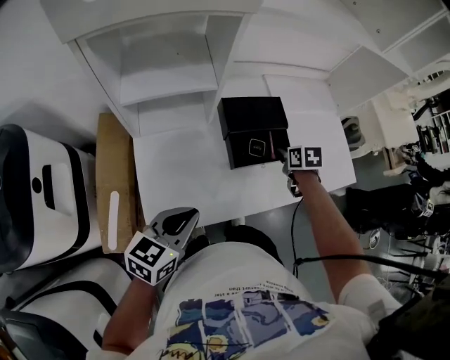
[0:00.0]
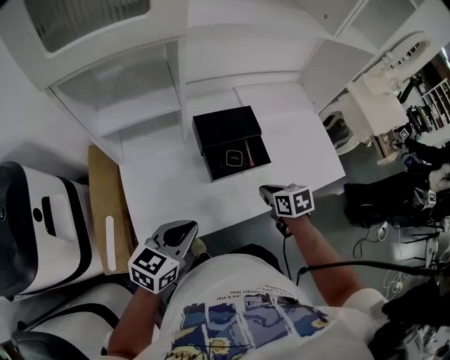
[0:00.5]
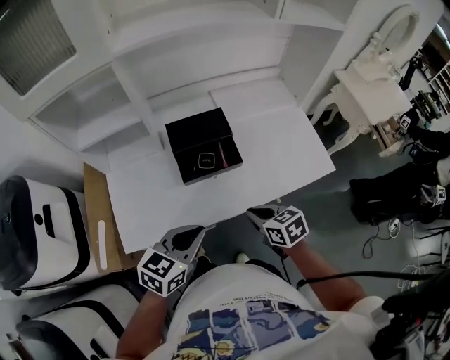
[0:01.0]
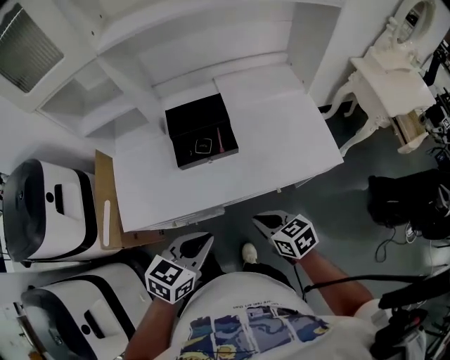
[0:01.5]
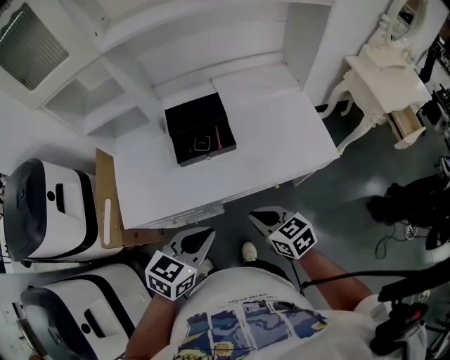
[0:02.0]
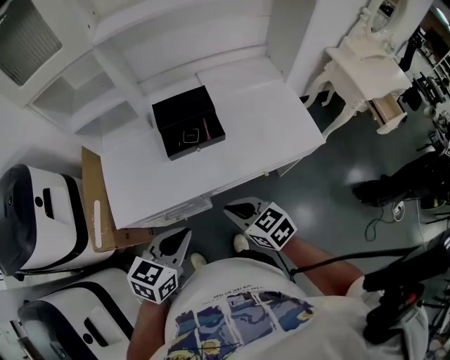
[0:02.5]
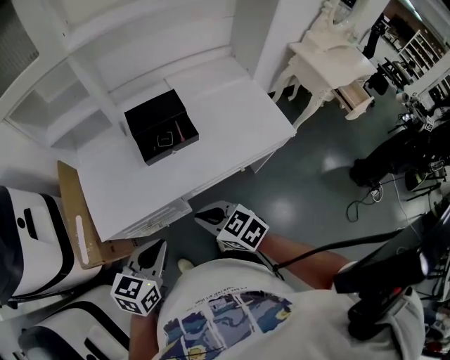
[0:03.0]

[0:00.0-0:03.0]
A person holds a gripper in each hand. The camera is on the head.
0:00.0 to 0:01.5: The right gripper travels backward by about 25 cm, and changes its angle by some 40 degrees, while the left gripper travels to the right by some 25 cm.
0:01.5 to 0:03.0: The left gripper goes roughly 10 cm to the left. Meanwhile the right gripper goes some 15 cm to the left and upward.

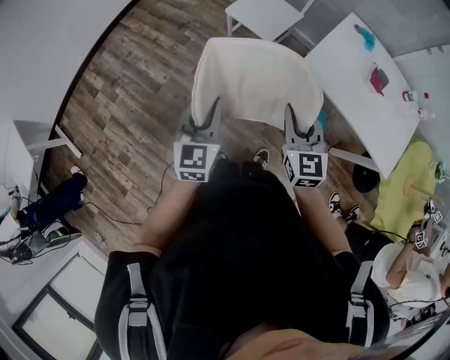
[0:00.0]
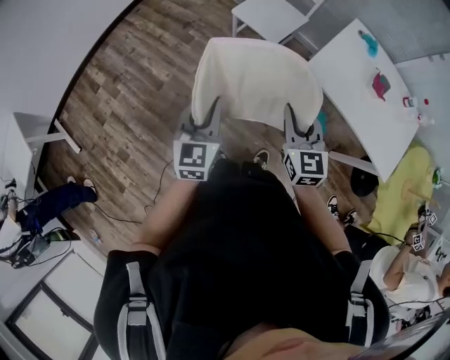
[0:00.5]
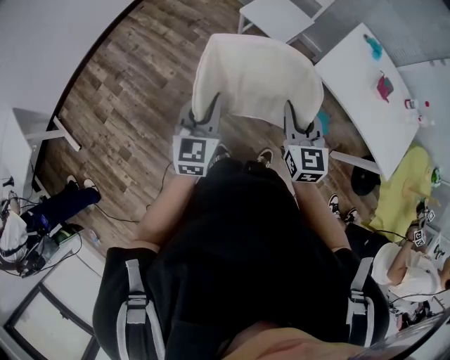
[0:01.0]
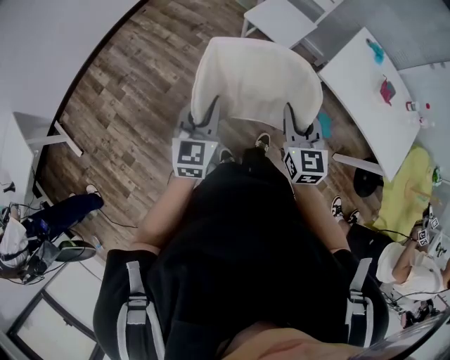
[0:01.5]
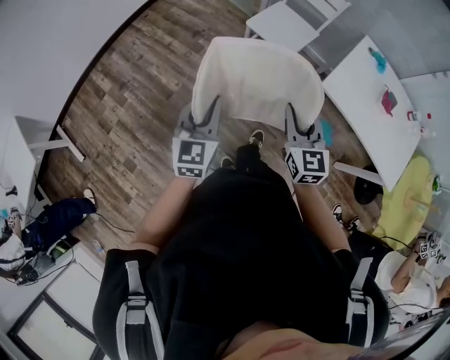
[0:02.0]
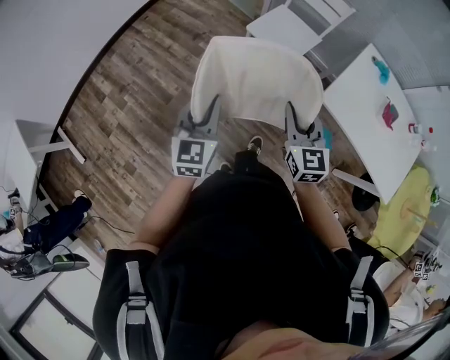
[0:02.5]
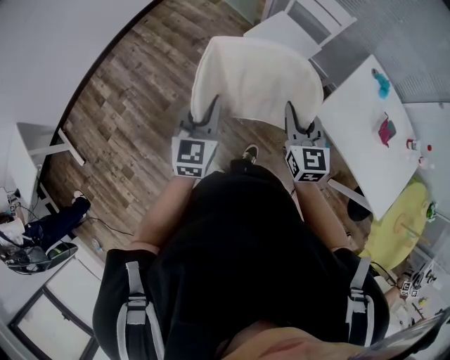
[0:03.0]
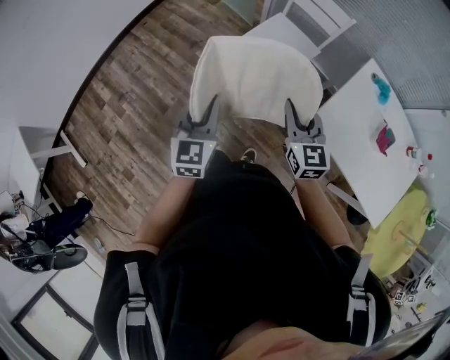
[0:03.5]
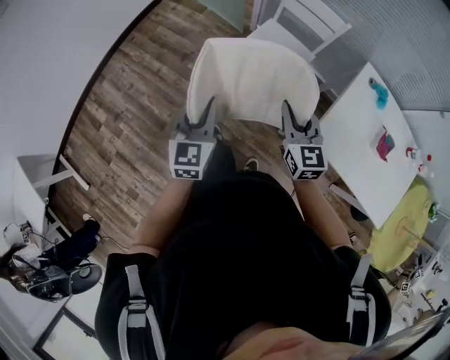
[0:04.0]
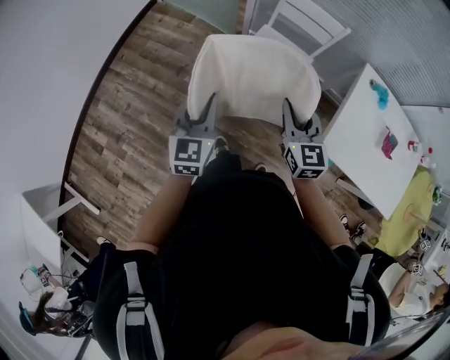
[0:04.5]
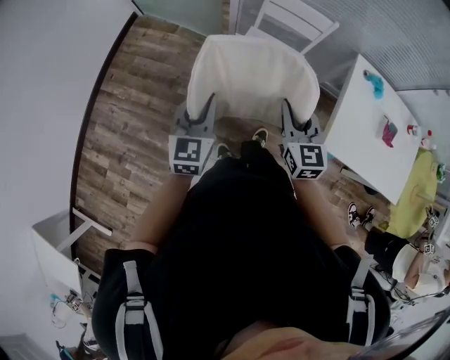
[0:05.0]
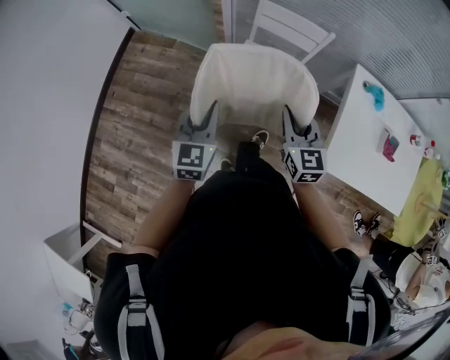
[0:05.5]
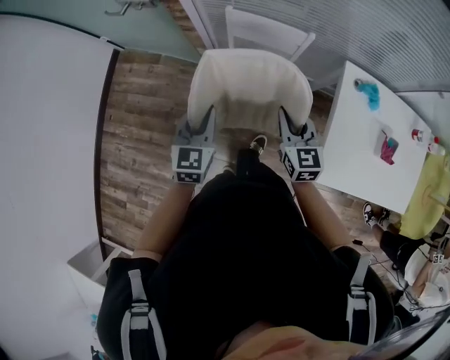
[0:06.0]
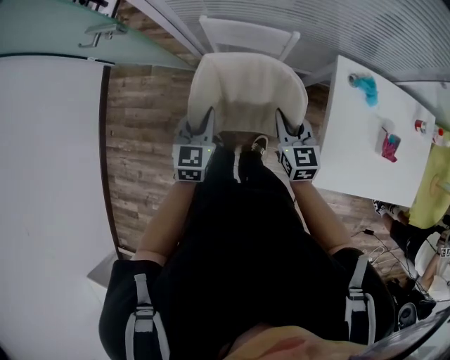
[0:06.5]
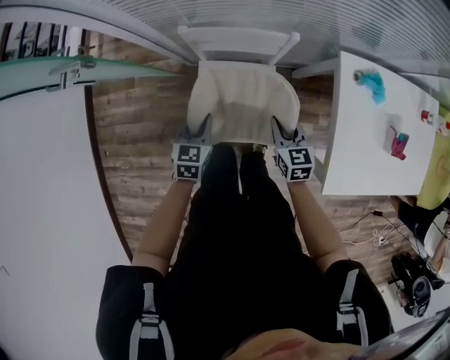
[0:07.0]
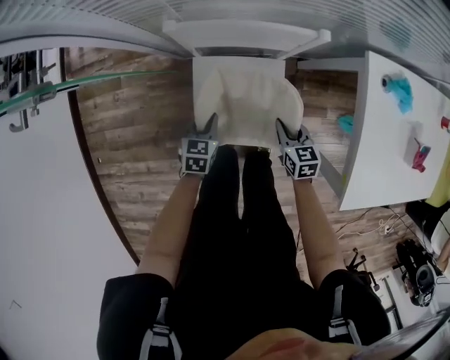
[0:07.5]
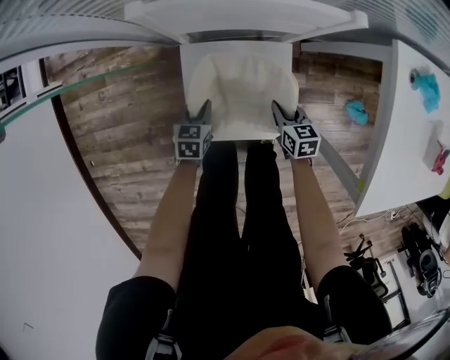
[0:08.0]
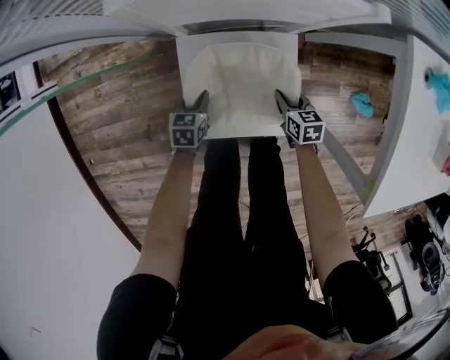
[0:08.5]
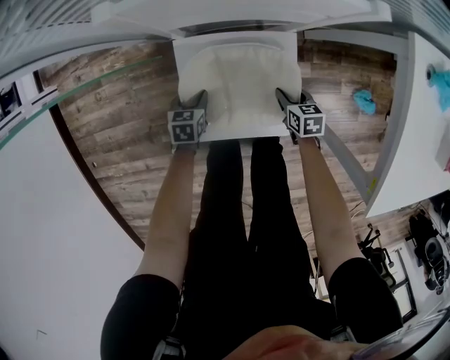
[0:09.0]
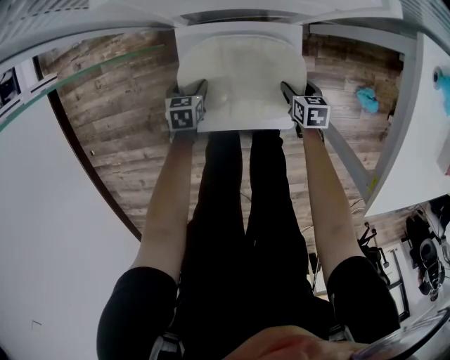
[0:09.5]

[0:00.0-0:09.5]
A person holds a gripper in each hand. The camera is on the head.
0:00.0 to 0:02.0: Both grippers move to the left, approximately 15 cm.
0:02.0 to 0:04.0: Both grippers travel together forward, roughly 30 cm.
0:04.0 to 0:05.5: The two grippers go some 20 cm forward.
0:05.5 to 0:07.5: The grippers both shift downward and forward by some 50 cm. The left gripper changes its angle by approximately 40 degrees. The right gripper rotates about 40 degrees.
0:07.5 to 0:09.5: Both grippers travel together downward, about 25 cm. The right gripper changes its angle by roughly 20 degrees, and opens. The left gripper opens up.

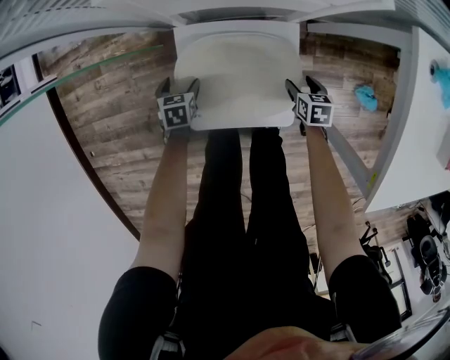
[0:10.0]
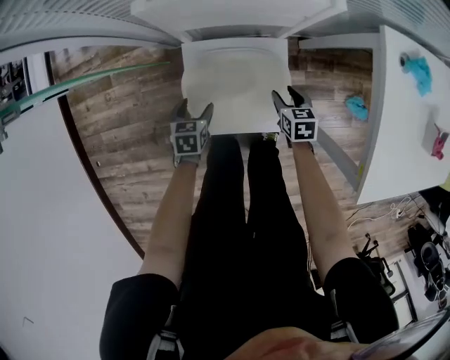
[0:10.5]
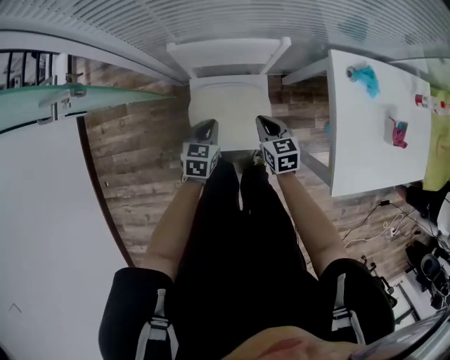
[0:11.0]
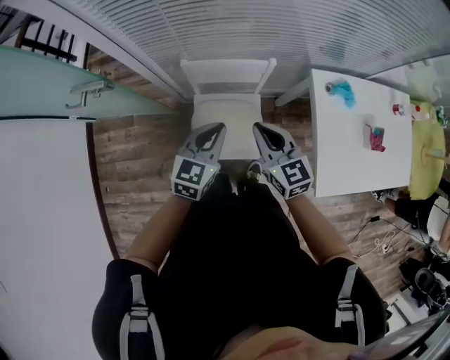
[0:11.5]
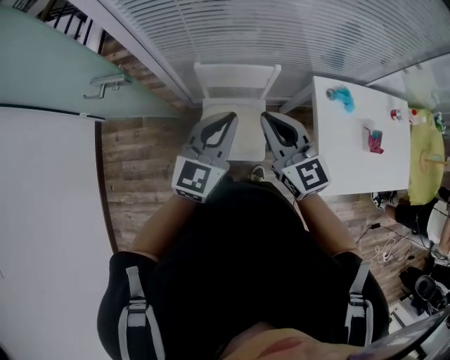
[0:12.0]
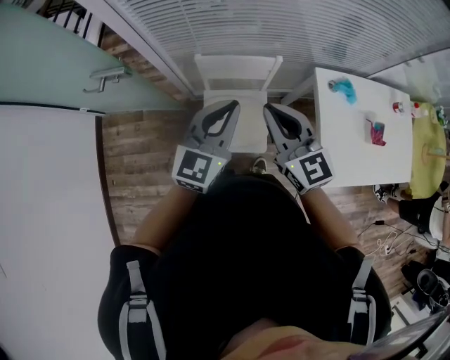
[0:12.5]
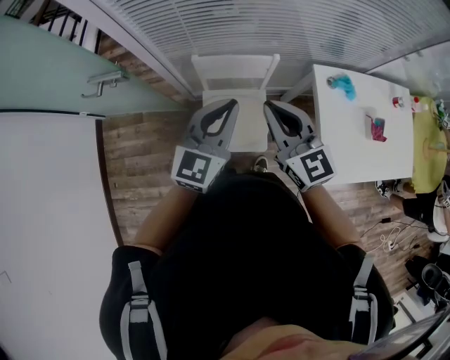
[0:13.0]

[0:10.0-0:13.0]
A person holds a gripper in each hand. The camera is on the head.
0:10.0 to 0:11.5: Both grippers move upward, roughly 60 cm. The right gripper angles its fingers upward, by approximately 40 degrees, and closes. Meanwhile the left gripper tilts its fingers approximately 40 degrees upward, and closes.
0:11.5 to 0:13.0: The two grippers go roughly 15 cm upward.

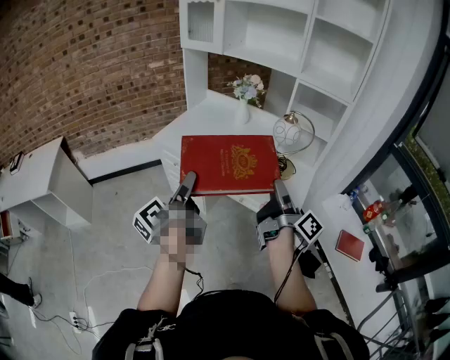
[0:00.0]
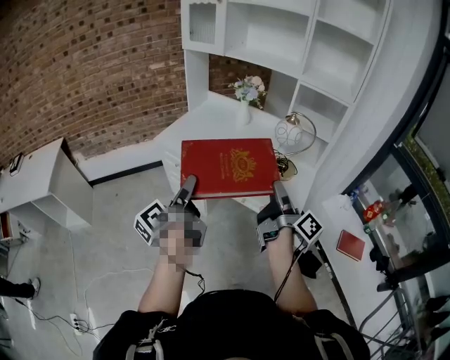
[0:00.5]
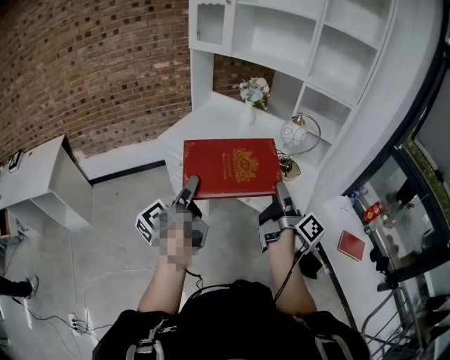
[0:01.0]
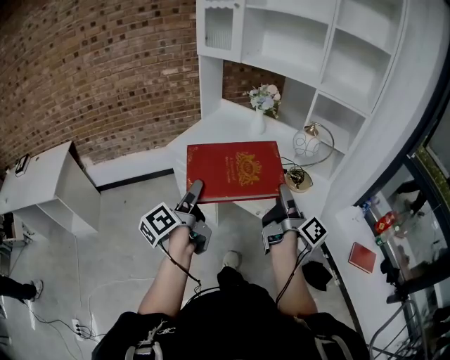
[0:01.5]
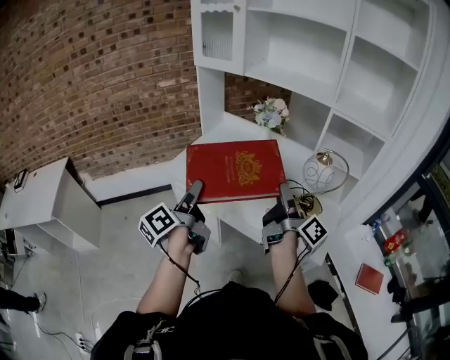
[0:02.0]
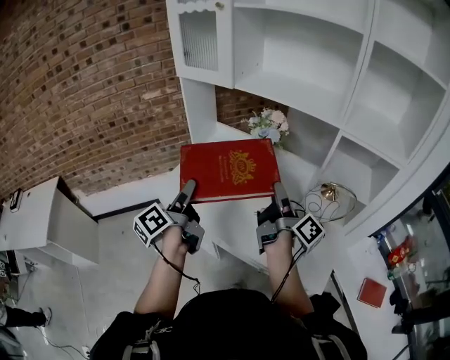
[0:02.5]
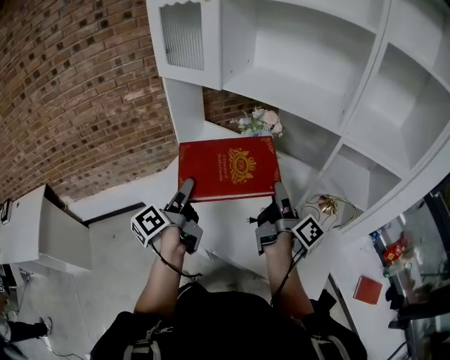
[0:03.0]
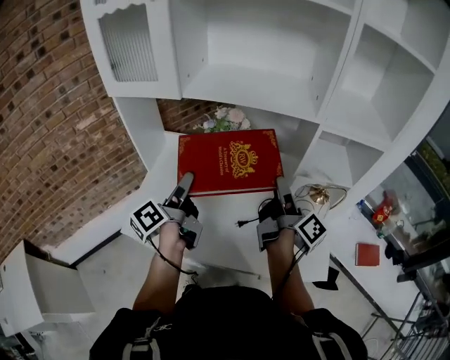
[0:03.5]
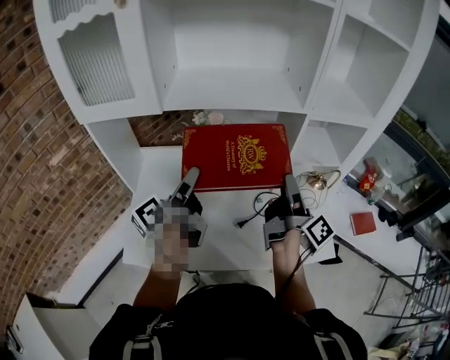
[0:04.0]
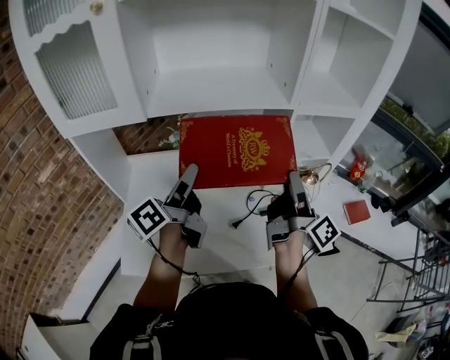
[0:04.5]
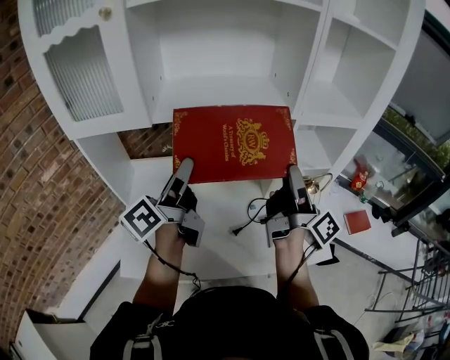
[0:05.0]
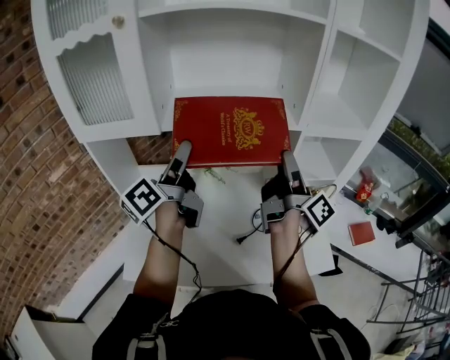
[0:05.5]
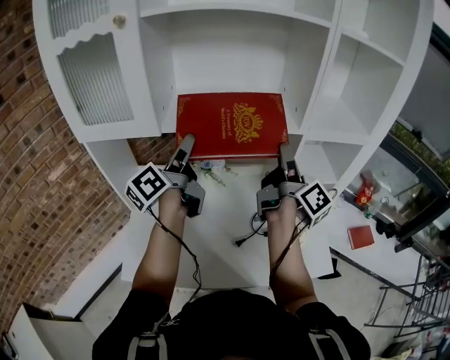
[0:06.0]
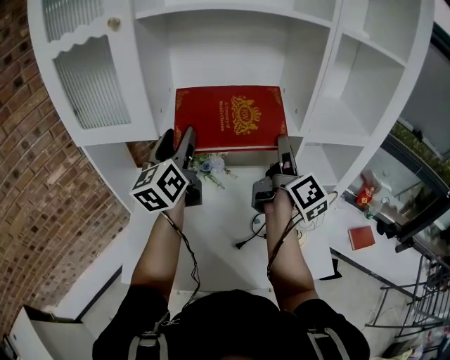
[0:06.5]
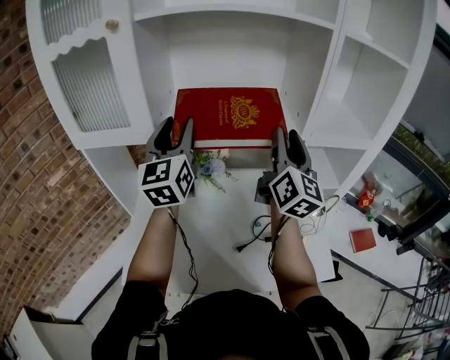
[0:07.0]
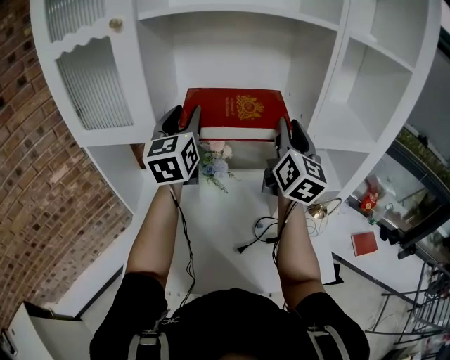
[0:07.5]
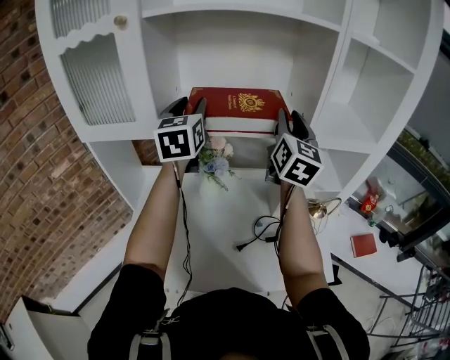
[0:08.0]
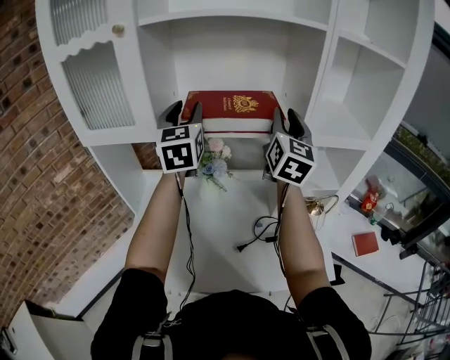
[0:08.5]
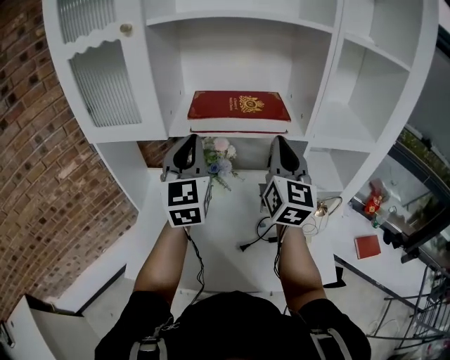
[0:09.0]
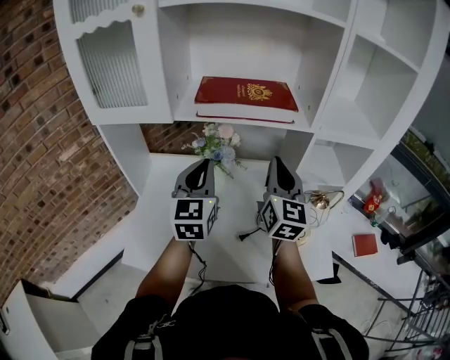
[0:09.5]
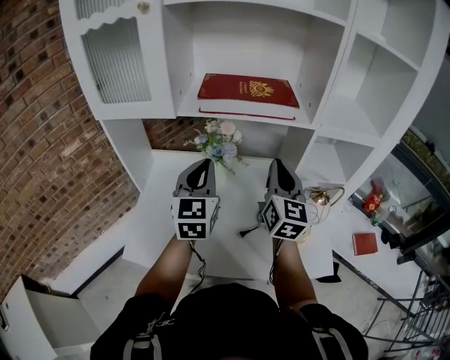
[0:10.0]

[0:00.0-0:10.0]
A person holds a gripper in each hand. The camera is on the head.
0:00.0 to 0:02.0: Both grippers travel together forward, approximately 20 cm.
0:02.0 to 0:04.0: The left gripper changes place by some 40 cm, and rotates some 40 degrees. Meanwhile the right gripper shifts by some 25 cm, and changes its angle by approximately 40 degrees.
0:04.0 to 0:06.0: The left gripper shifts about 15 cm upward and forward. The right gripper moves forward and upward, roughly 15 cm.
0:06.0 to 0:08.0: The two grippers go some 10 cm forward and upward. The right gripper rolls counterclockwise, seen from behind, by roughly 70 degrees, and closes. The left gripper twists approximately 60 degrees clockwise, seen from behind.
0:08.0 to 0:10.0: The two grippers go about 20 cm backward and downward. The right gripper closes. Meanwhile the left gripper closes up.
